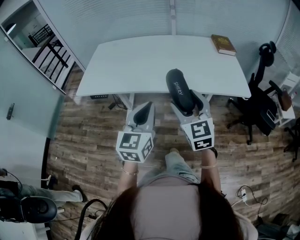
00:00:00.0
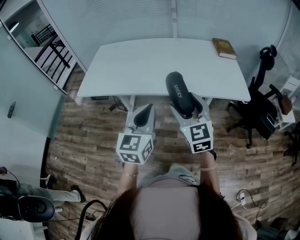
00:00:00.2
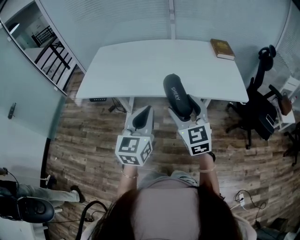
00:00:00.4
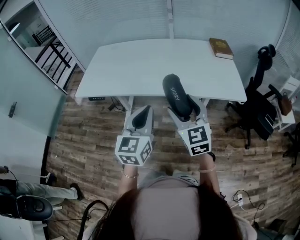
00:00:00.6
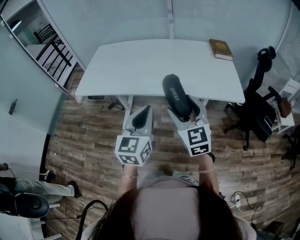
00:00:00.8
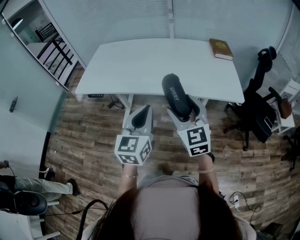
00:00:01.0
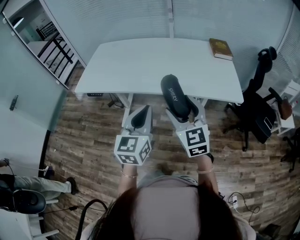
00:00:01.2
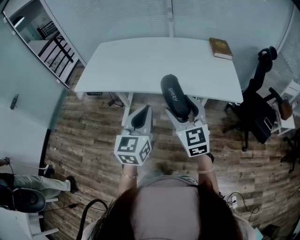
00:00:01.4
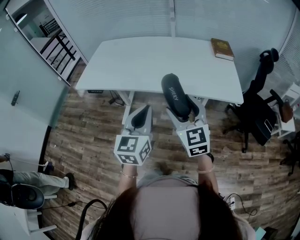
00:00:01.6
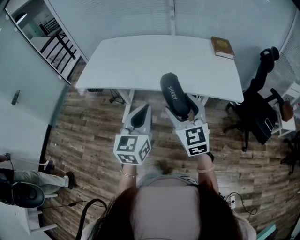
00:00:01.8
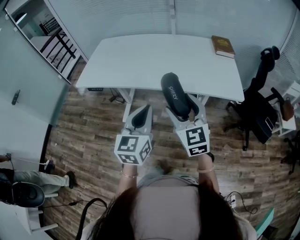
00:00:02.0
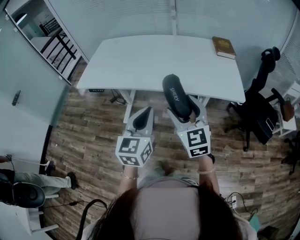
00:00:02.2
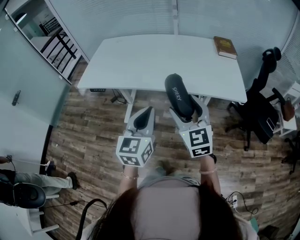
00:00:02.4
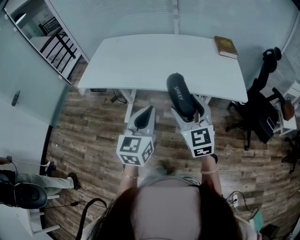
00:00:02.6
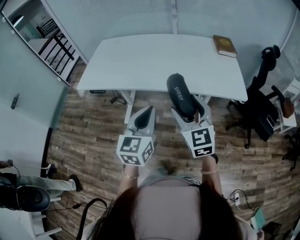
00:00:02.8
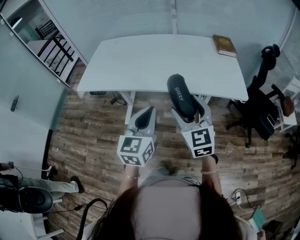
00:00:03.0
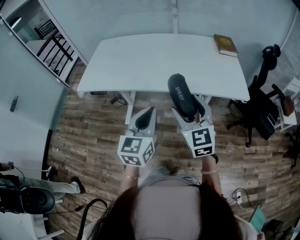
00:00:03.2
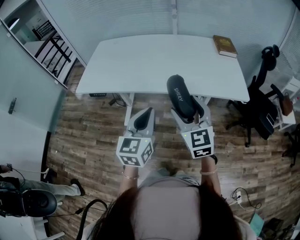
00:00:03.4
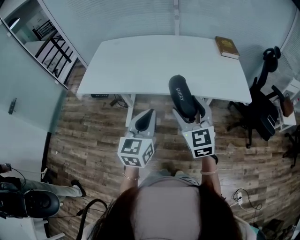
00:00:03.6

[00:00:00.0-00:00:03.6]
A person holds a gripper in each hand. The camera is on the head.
00:00:00.0 to 00:00:01.8: Both grippers move to the right, some 5 cm.
00:00:01.8 to 00:00:03.6: The right gripper ends up about 5 cm from where it was. The left gripper shifts roughly 5 cm to the left.

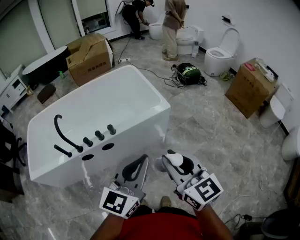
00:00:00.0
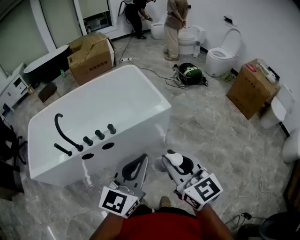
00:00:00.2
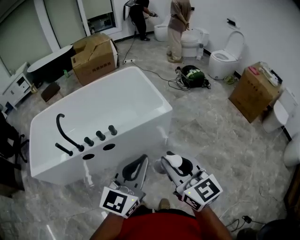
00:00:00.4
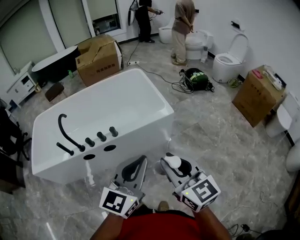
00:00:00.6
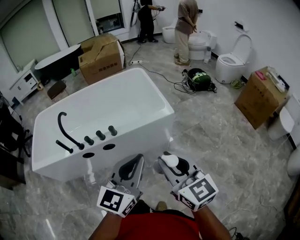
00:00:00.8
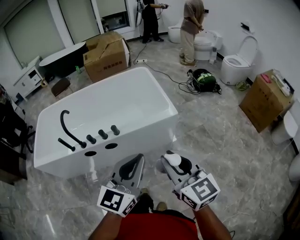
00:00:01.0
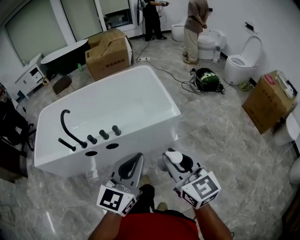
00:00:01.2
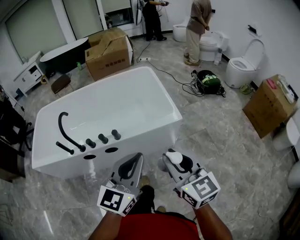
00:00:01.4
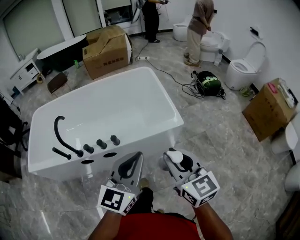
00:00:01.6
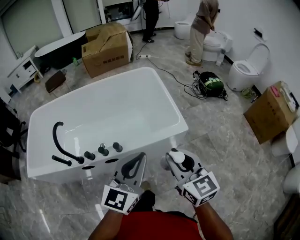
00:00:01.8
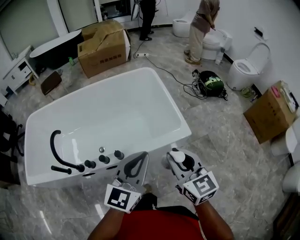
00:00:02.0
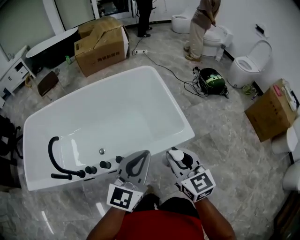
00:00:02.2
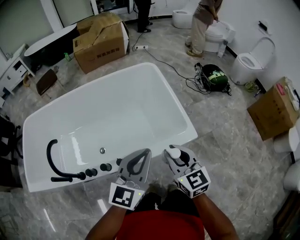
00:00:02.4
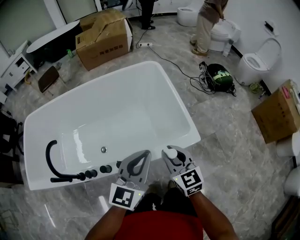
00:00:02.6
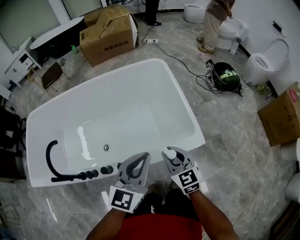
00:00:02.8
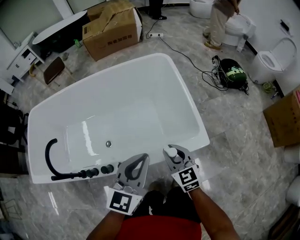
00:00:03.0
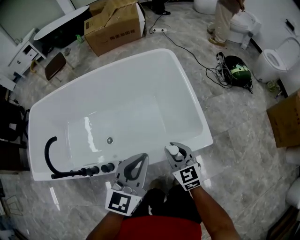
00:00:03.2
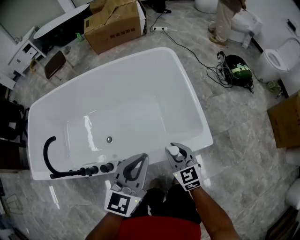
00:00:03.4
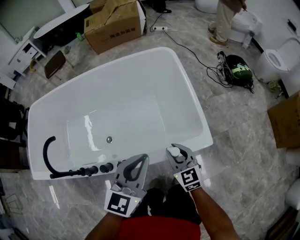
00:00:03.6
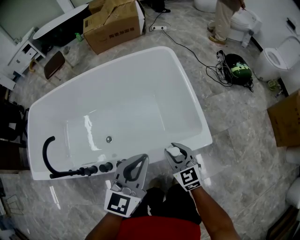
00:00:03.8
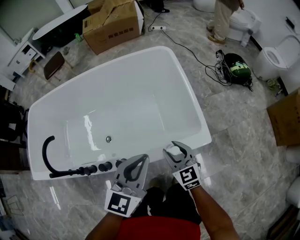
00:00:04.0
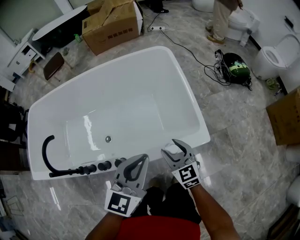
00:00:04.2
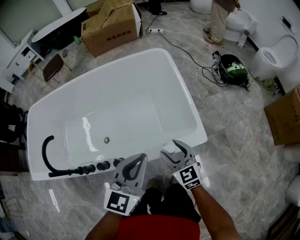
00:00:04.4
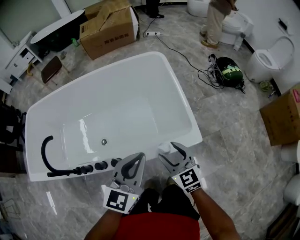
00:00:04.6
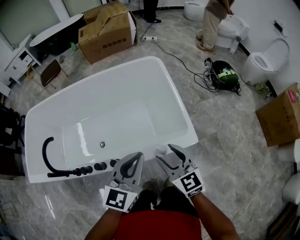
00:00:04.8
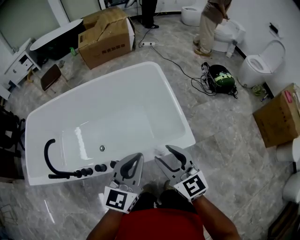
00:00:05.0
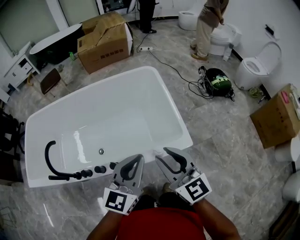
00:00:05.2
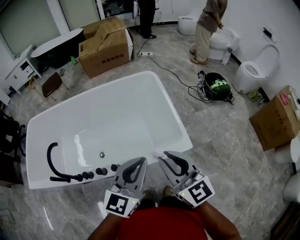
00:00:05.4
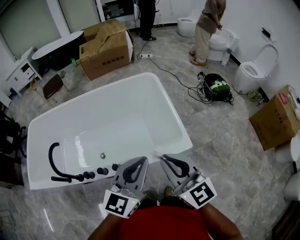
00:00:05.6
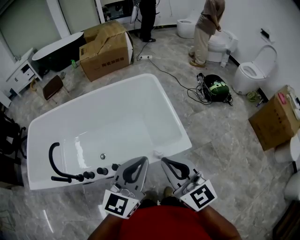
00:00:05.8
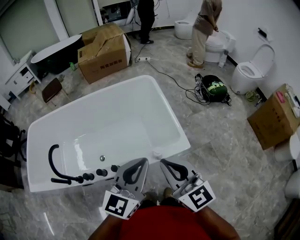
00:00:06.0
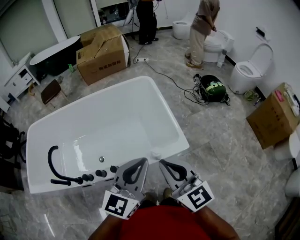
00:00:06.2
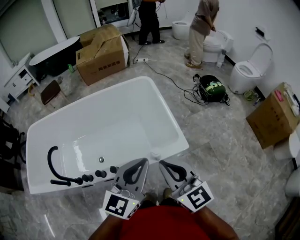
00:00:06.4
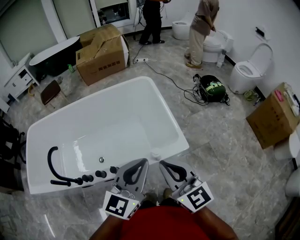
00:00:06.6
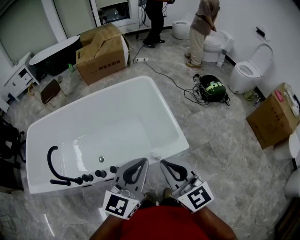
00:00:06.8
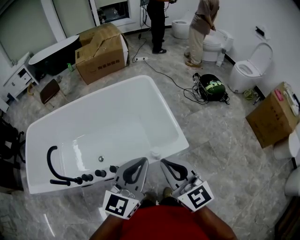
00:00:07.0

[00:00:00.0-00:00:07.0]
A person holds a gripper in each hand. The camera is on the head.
00:00:00.0 to 00:00:01.4: The grippers both shift forward by approximately 10 cm.
00:00:01.4 to 00:00:02.8: The right gripper heads forward and downward, covering approximately 40 cm. Meanwhile the left gripper is displaced forward by about 35 cm.
00:00:02.8 to 00:00:04.2: The right gripper travels downward by some 5 cm, and opens its fingers.
00:00:04.2 to 00:00:05.6: The right gripper is displaced upward by about 30 cm, swivels approximately 20 degrees, and closes. The left gripper shifts some 15 cm upward and backward.
00:00:05.6 to 00:00:07.0: The grippers make only small movements.

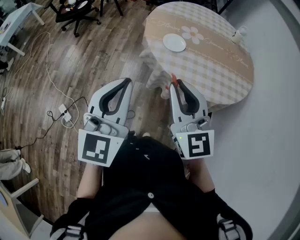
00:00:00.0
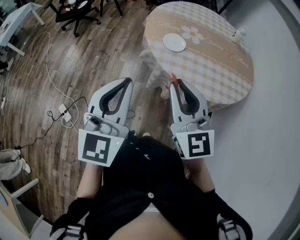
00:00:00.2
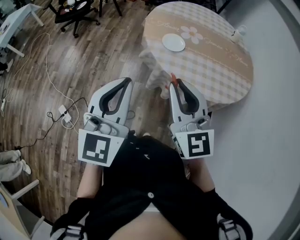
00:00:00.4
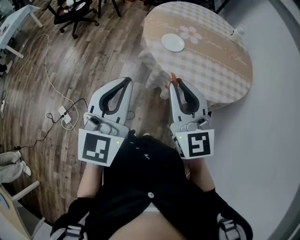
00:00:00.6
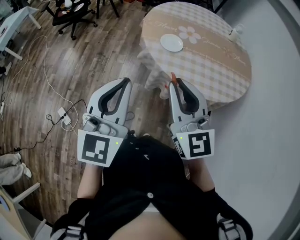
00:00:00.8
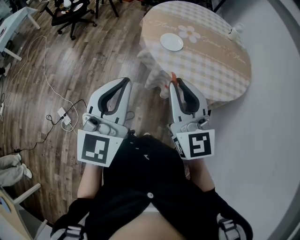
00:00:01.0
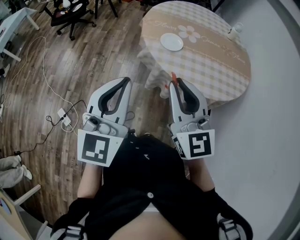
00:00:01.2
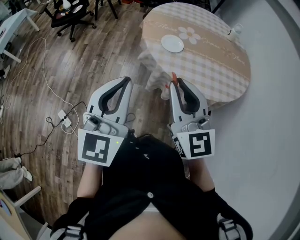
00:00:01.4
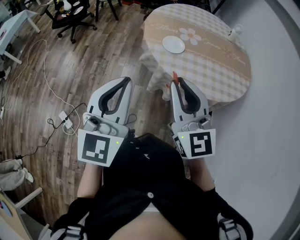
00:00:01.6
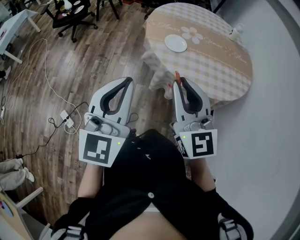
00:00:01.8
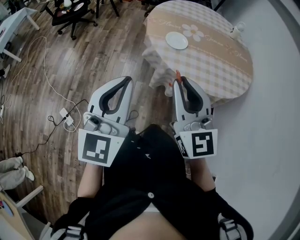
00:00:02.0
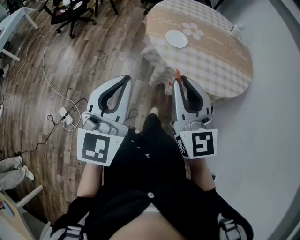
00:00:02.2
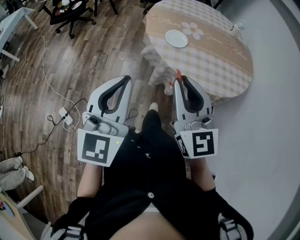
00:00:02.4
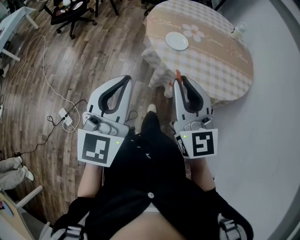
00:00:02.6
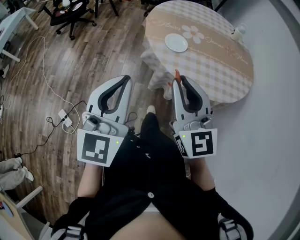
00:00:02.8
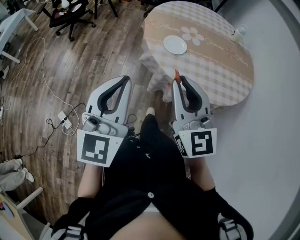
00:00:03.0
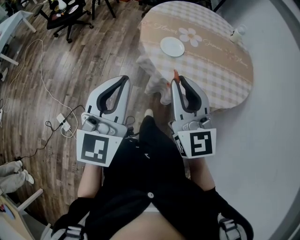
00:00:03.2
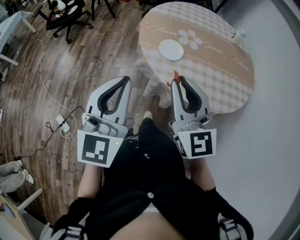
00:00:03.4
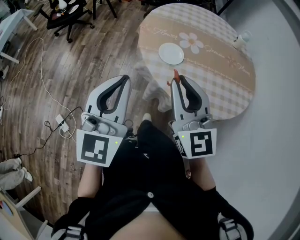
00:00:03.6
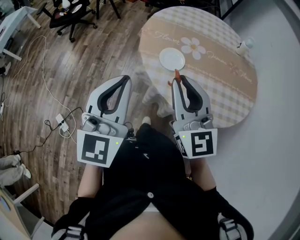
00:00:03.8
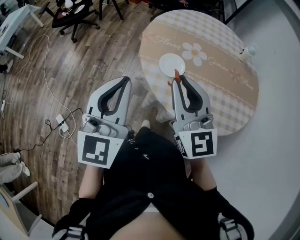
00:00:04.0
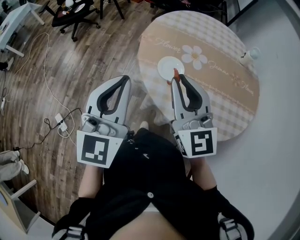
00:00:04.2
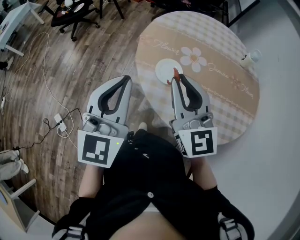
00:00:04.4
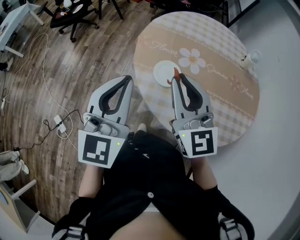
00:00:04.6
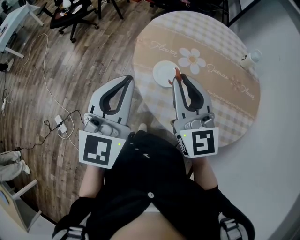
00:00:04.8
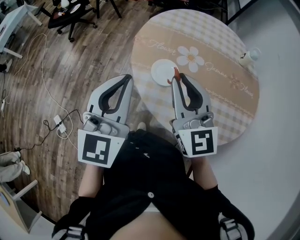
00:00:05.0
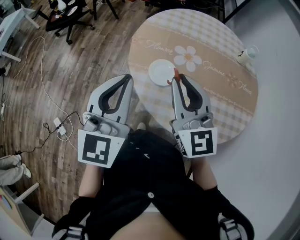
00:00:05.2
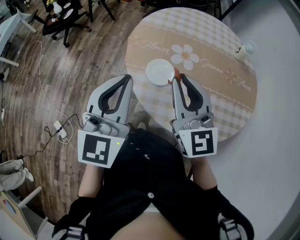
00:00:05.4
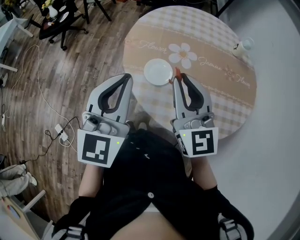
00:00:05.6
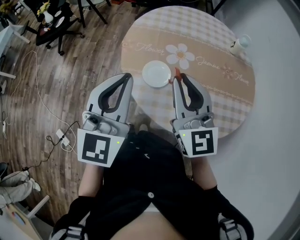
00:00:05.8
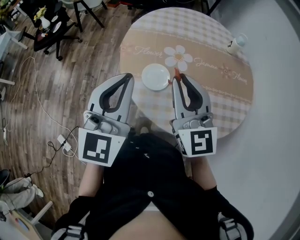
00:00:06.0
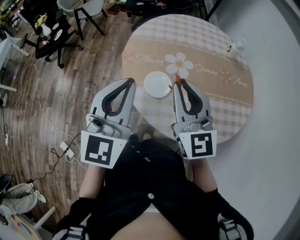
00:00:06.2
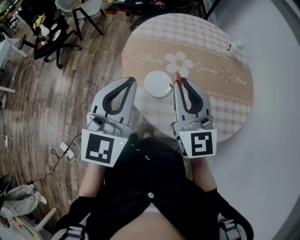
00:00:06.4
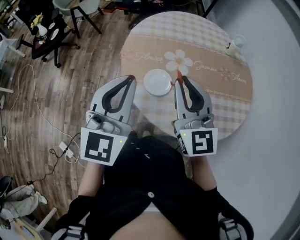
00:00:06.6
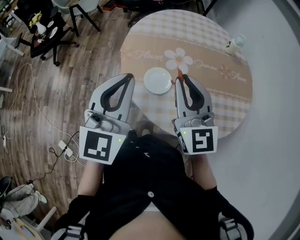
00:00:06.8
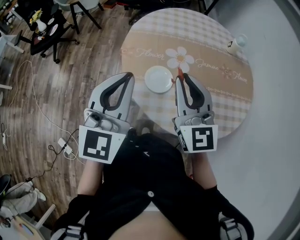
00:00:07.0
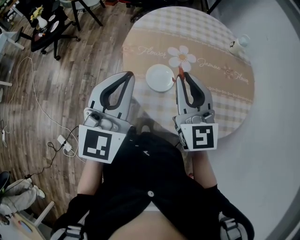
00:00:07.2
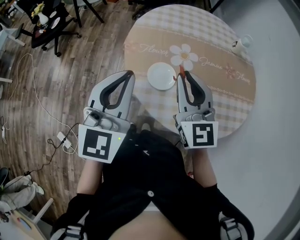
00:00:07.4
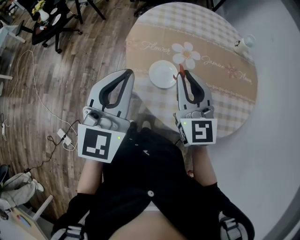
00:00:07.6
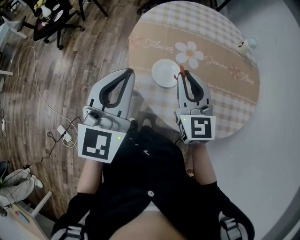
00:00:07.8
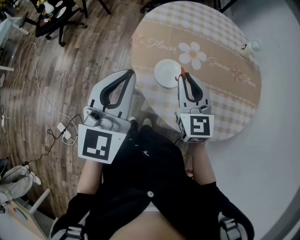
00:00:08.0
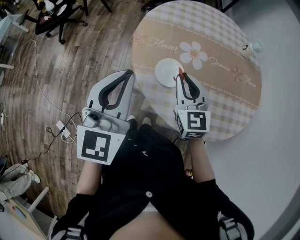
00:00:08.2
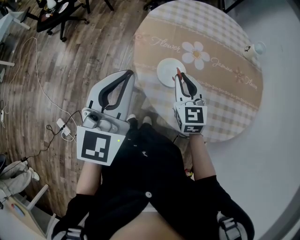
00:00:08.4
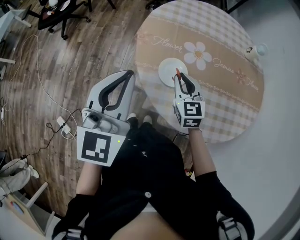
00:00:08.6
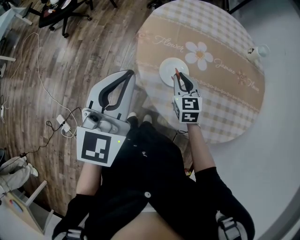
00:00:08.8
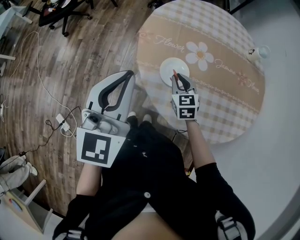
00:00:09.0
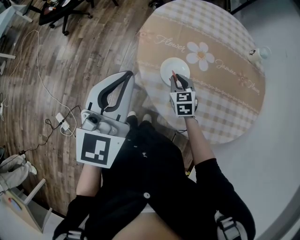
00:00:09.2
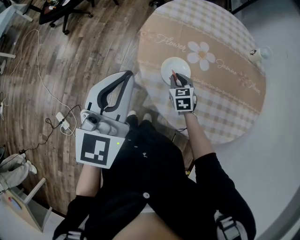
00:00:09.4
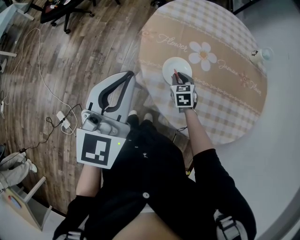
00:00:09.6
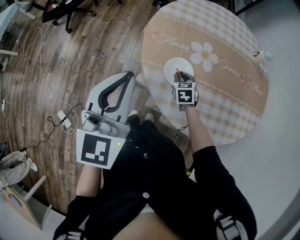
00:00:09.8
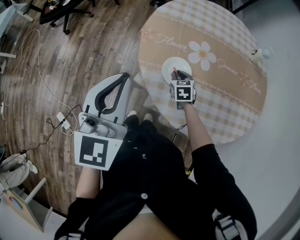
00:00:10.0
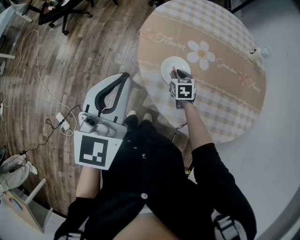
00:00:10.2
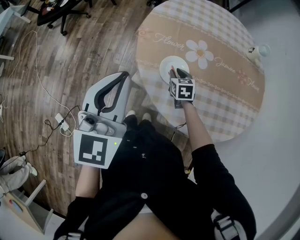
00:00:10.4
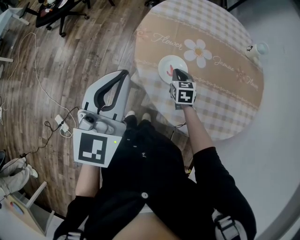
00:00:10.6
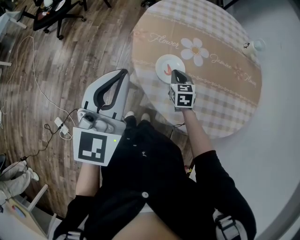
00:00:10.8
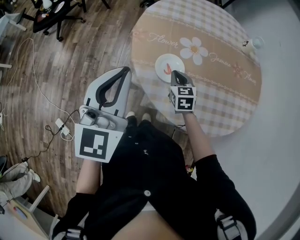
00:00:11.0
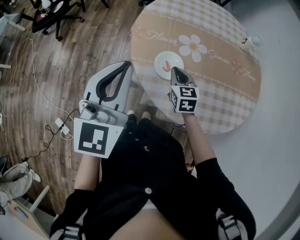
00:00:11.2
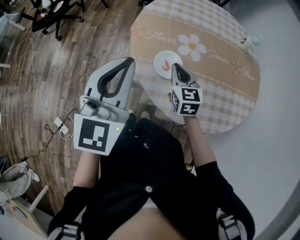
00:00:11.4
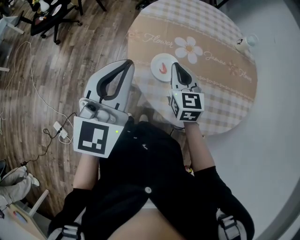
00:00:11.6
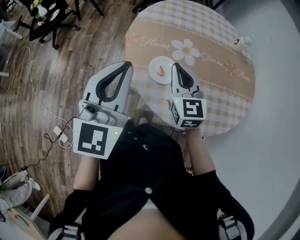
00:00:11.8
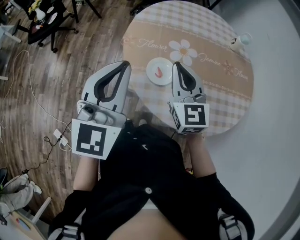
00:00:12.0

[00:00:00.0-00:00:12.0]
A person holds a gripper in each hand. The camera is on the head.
00:00:00.0 to 00:00:03.0: The grippers make only small movements.
00:00:03.0 to 00:00:04.4: The right gripper travels forward by about 20 cm. Meanwhile the left gripper travels forward and to the right by roughly 20 cm.
00:00:04.4 to 00:00:06.0: The left gripper shifts roughly 10 cm forward and to the right. Meanwhile the right gripper goes roughly 5 cm to the right.
00:00:06.0 to 00:00:07.6: The right gripper travels downward by about 5 cm; the left gripper changes place by about 5 cm.
00:00:07.6 to 00:00:09.0: The right gripper goes roughly 25 cm downward, and changes its angle by roughly 30 degrees.
00:00:09.0 to 00:00:10.4: The right gripper heads downward, covering approximately 10 cm.
00:00:10.4 to 00:00:12.0: The left gripper ends up some 5 cm from where it was; the right gripper is displaced upward by some 30 cm, and angles its fingers upward, by roughly 40 degrees.

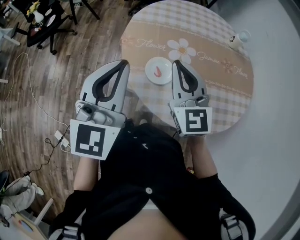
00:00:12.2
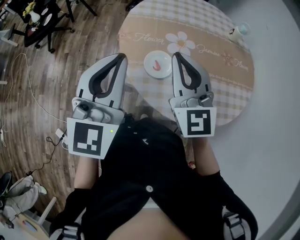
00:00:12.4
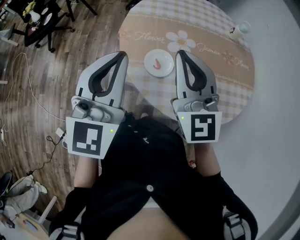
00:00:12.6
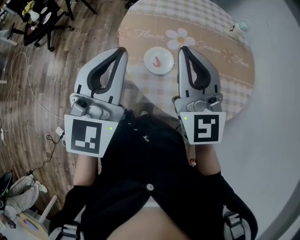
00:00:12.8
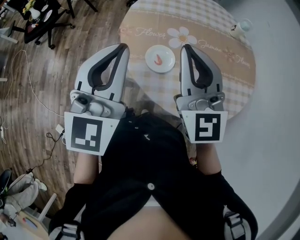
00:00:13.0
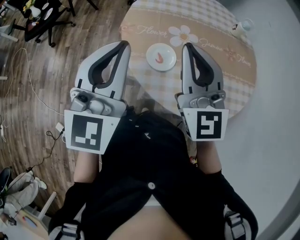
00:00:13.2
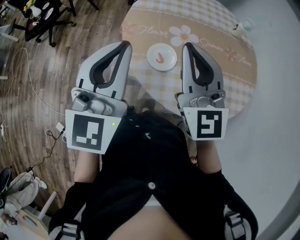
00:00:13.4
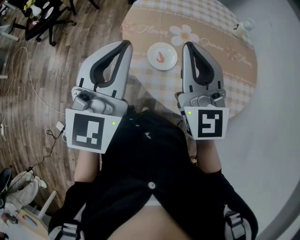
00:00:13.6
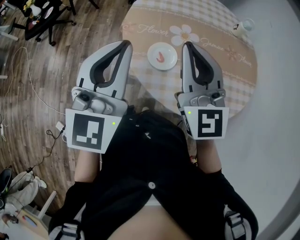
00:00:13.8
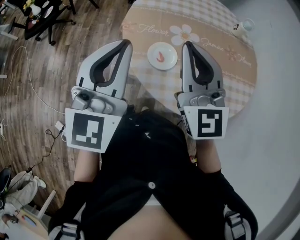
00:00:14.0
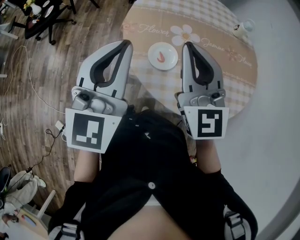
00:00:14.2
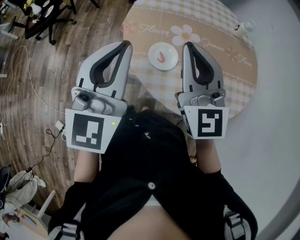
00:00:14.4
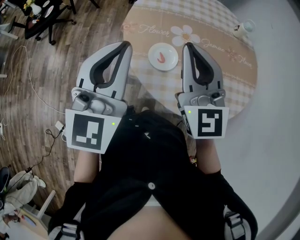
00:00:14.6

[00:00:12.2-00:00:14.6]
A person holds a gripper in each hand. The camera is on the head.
00:00:12.2 to 00:00:13.4: The right gripper is displaced upward by about 5 cm.
00:00:13.4 to 00:00:14.6: Both grippers stay about where they are.
